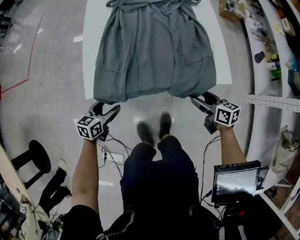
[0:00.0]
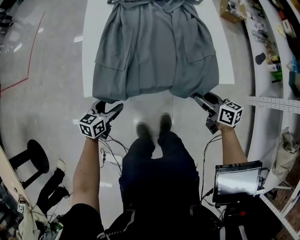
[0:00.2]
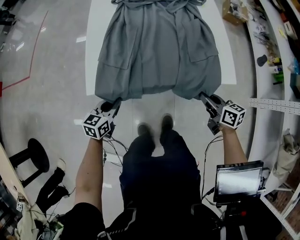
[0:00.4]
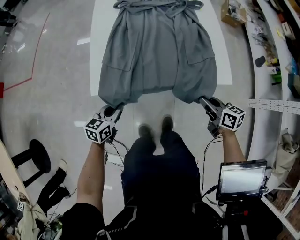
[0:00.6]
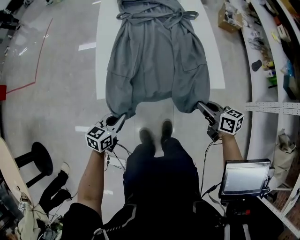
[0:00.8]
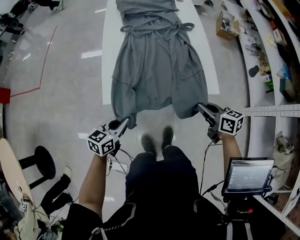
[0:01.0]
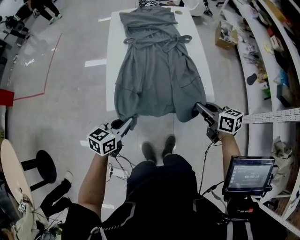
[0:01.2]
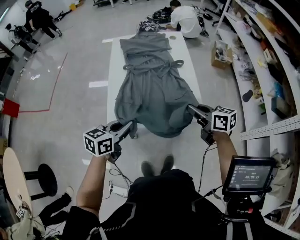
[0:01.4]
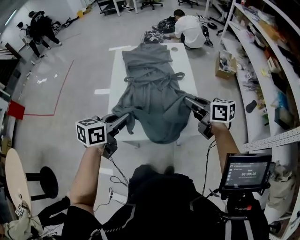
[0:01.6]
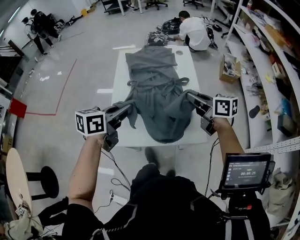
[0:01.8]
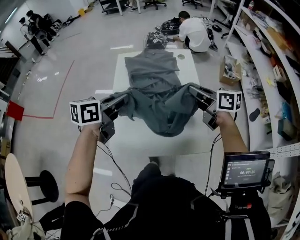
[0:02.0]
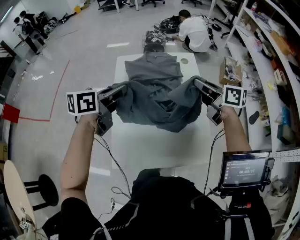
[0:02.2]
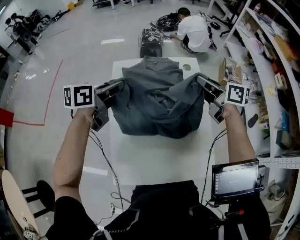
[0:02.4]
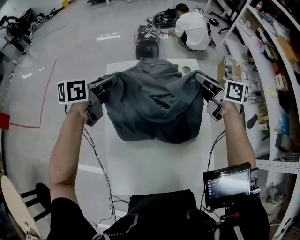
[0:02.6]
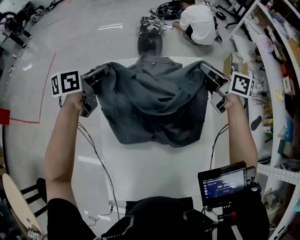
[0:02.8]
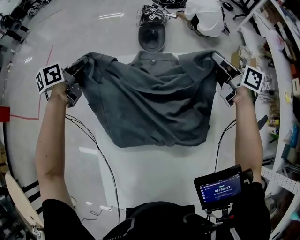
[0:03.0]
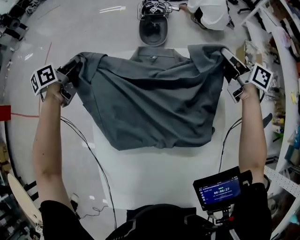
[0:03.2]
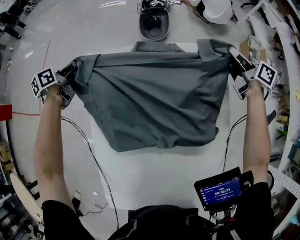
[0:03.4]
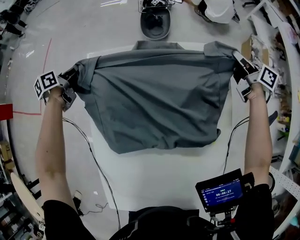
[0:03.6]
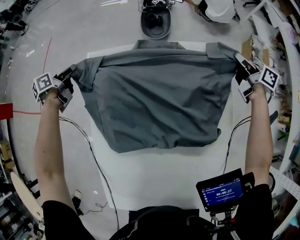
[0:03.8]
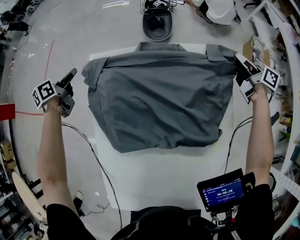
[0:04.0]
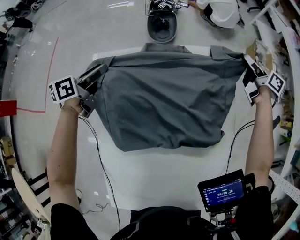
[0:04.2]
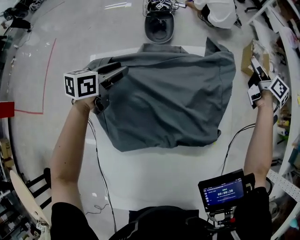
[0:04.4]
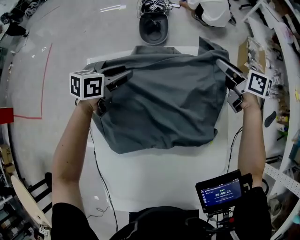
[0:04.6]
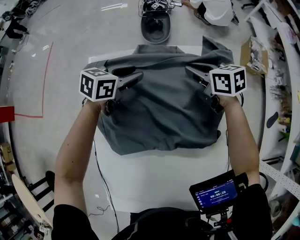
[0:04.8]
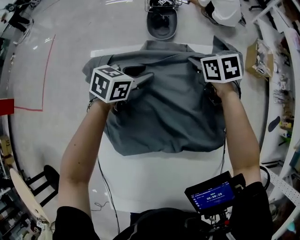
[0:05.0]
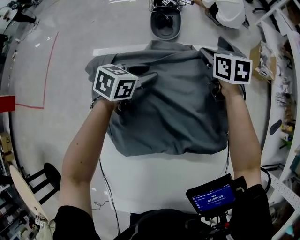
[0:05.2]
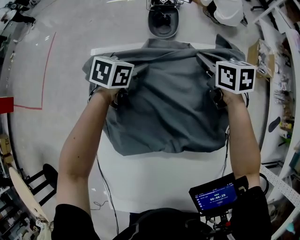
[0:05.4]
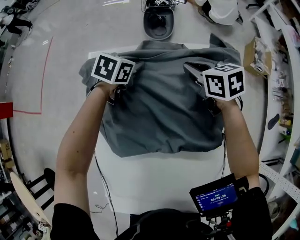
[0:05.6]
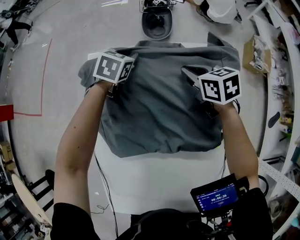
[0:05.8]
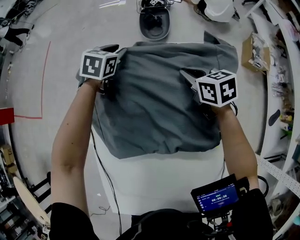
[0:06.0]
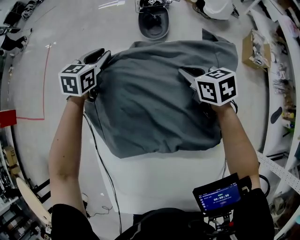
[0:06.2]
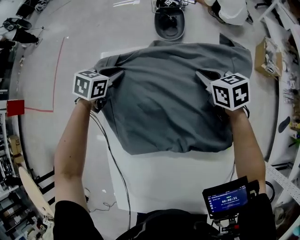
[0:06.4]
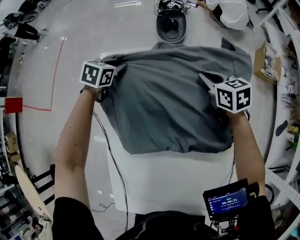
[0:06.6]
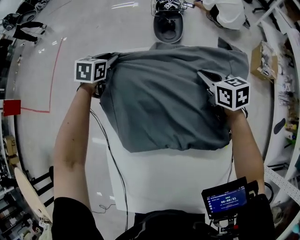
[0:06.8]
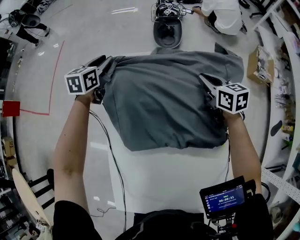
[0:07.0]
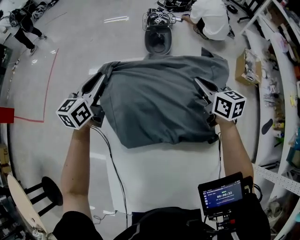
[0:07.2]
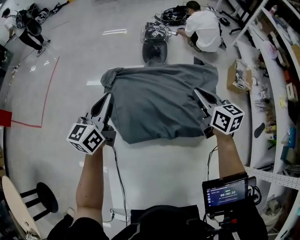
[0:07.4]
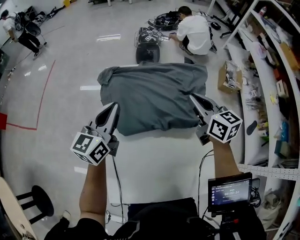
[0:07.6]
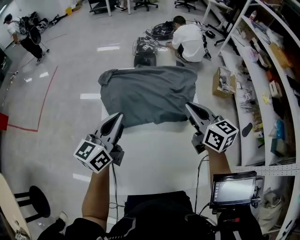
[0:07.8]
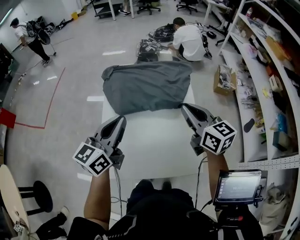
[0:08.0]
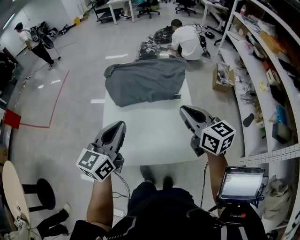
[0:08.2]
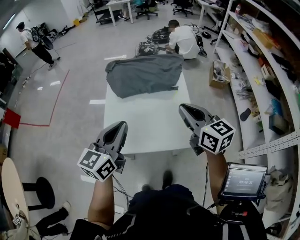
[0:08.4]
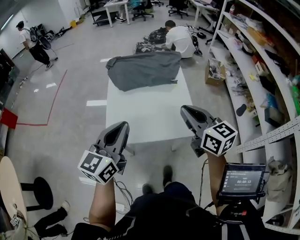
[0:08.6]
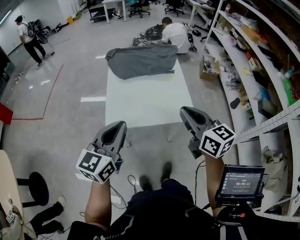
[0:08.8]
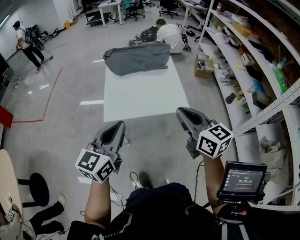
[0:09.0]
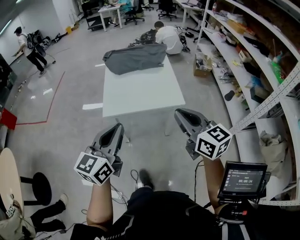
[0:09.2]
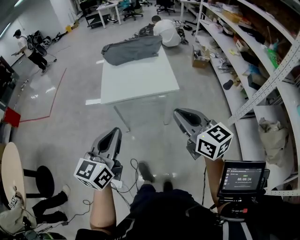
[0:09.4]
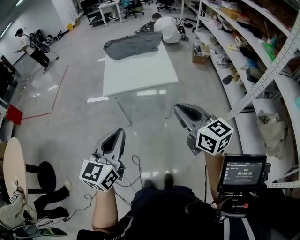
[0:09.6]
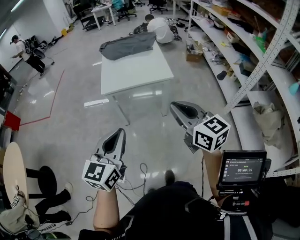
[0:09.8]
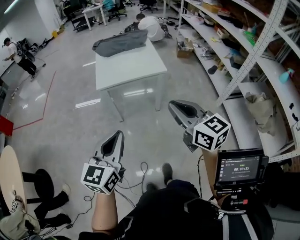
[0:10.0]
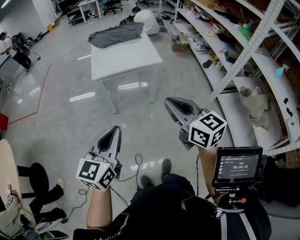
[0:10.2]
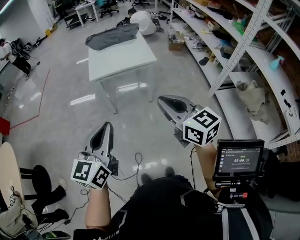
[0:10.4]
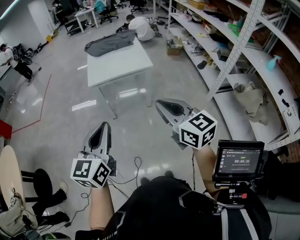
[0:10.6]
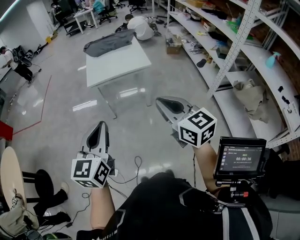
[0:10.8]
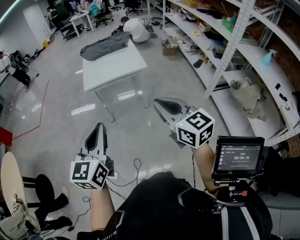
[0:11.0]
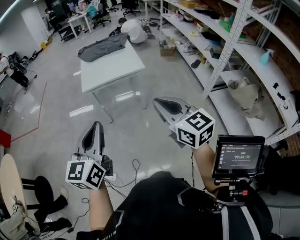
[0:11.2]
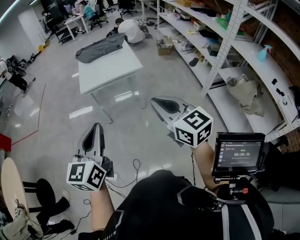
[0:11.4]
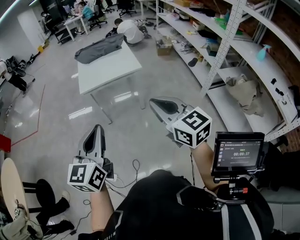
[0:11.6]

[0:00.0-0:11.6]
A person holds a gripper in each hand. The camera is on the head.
0:00.0 to 0:01.4: Both grippers travel together upward, roughly 30 cm. The left gripper closes; the right gripper closes up.
0:01.4 to 0:02.8: Both grippers are carried forward, about 60 cm.
0:02.8 to 0:04.4: The right gripper shifts roughly 25 cm to the right, downward and forward, changes its angle by some 30 degrees, and opens, while the left gripper goes approximately 15 cm downward and forward, moves roughly 20 cm to the left and comes back, and opens.
0:04.4 to 0:05.8: The right gripper moves approximately 30 cm, rotates approximately 50 degrees, and closes, while the left gripper changes place by about 10 cm, and turns by roughly 40 degrees.
0:05.8 to 0:07.2: The right gripper is displaced upward by about 5 cm. The left gripper moves up and down over roughly 15 cm, changing direction 2 times, and points its fingers some 40 degrees further upward.
0:07.2 to 0:08.8: Both grippers are carried backward, about 70 cm.
0:08.8 to 0:10.2: The pair of grippers is taken backward, approximately 50 cm.
0:10.2 to 0:11.6: The right gripper shifts about 10 cm backward and to the right. The left gripper travels upward by roughly 5 cm.

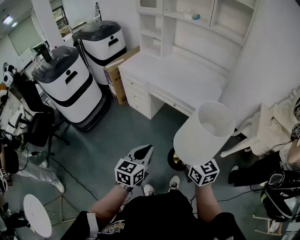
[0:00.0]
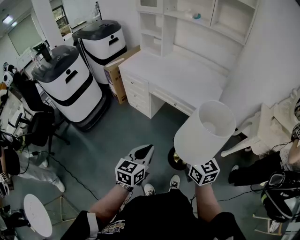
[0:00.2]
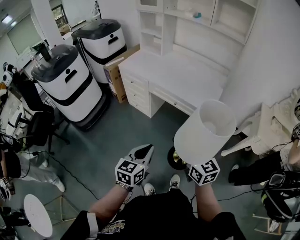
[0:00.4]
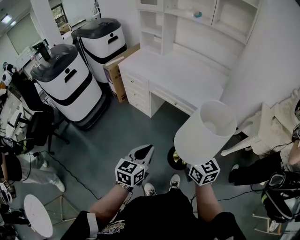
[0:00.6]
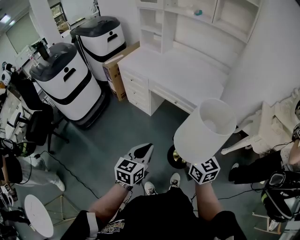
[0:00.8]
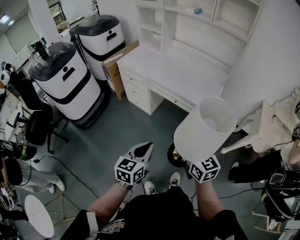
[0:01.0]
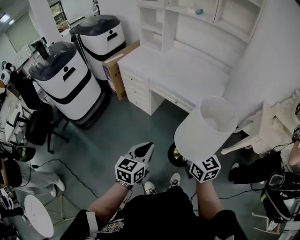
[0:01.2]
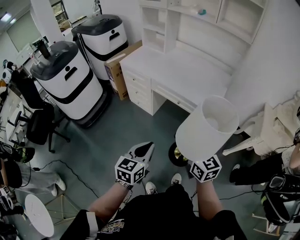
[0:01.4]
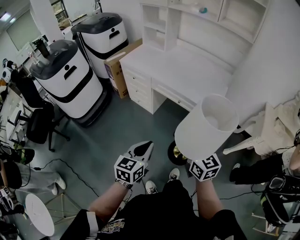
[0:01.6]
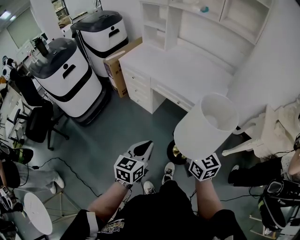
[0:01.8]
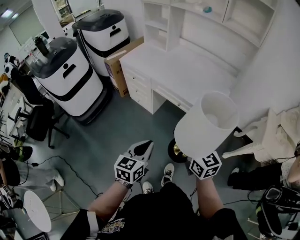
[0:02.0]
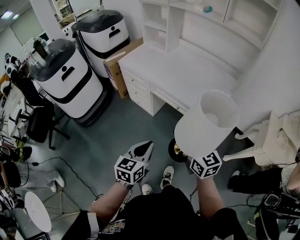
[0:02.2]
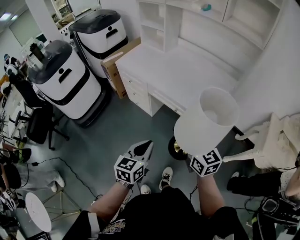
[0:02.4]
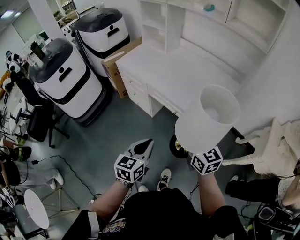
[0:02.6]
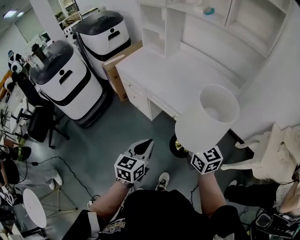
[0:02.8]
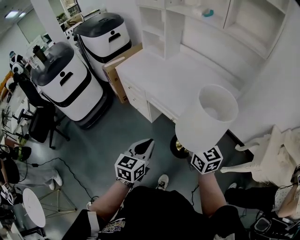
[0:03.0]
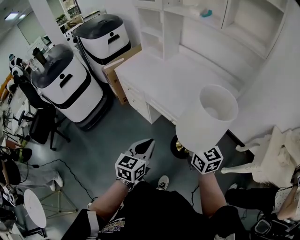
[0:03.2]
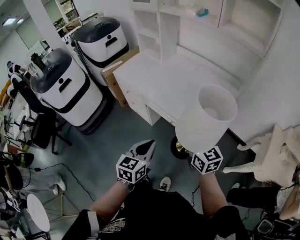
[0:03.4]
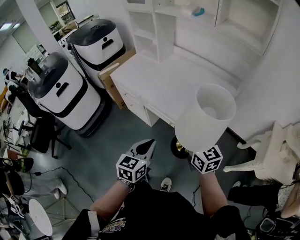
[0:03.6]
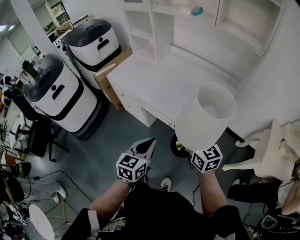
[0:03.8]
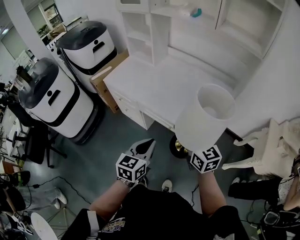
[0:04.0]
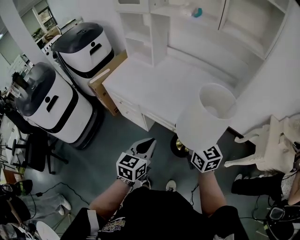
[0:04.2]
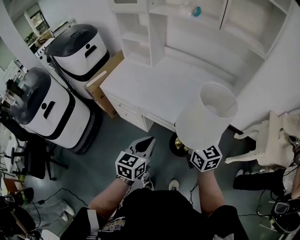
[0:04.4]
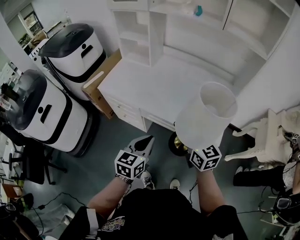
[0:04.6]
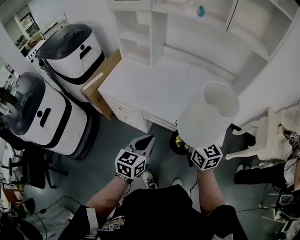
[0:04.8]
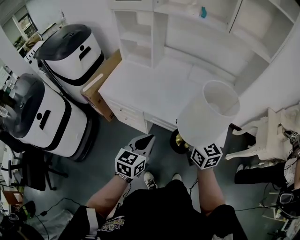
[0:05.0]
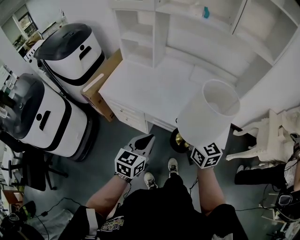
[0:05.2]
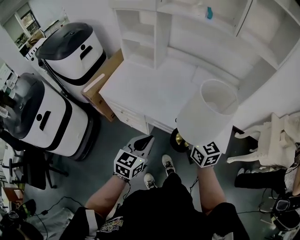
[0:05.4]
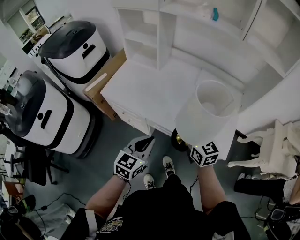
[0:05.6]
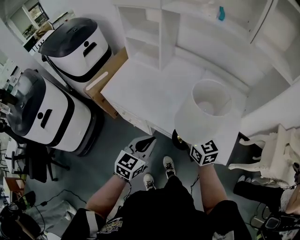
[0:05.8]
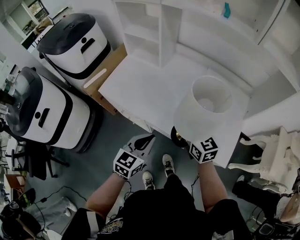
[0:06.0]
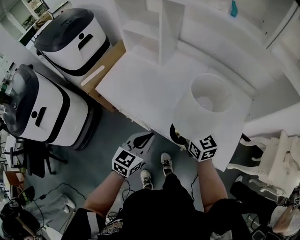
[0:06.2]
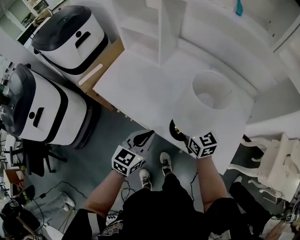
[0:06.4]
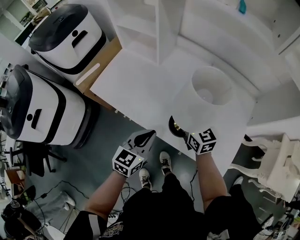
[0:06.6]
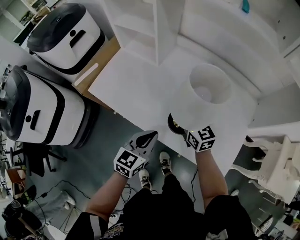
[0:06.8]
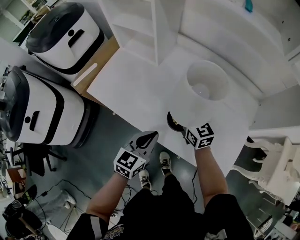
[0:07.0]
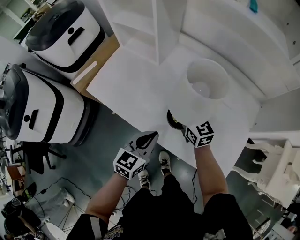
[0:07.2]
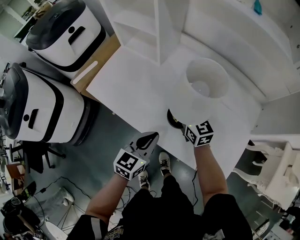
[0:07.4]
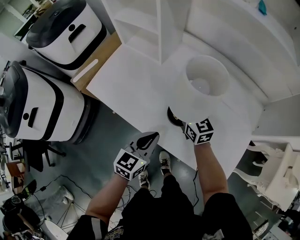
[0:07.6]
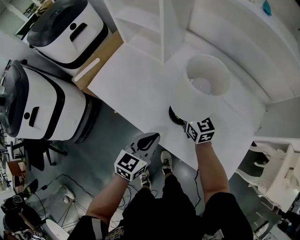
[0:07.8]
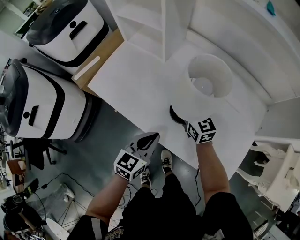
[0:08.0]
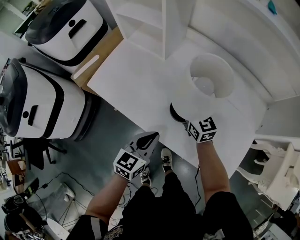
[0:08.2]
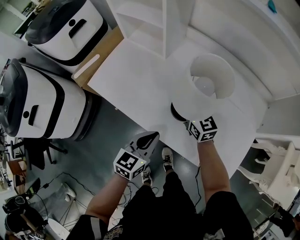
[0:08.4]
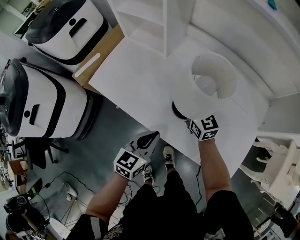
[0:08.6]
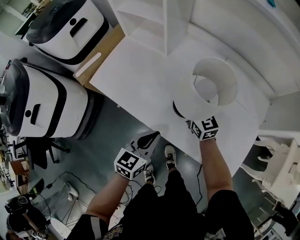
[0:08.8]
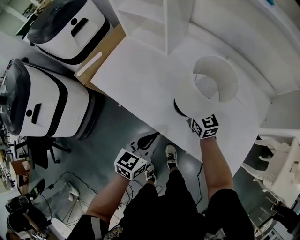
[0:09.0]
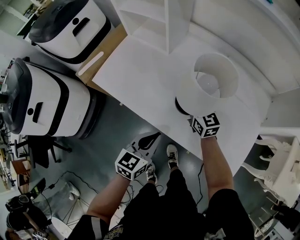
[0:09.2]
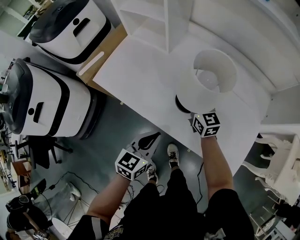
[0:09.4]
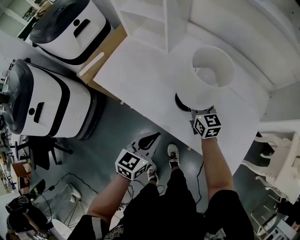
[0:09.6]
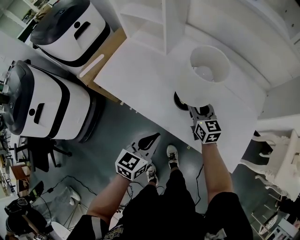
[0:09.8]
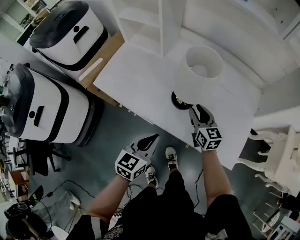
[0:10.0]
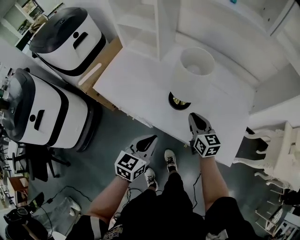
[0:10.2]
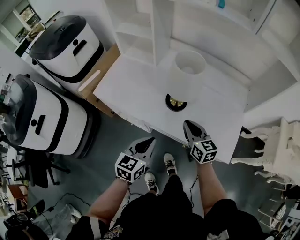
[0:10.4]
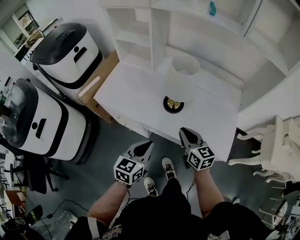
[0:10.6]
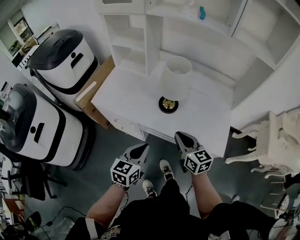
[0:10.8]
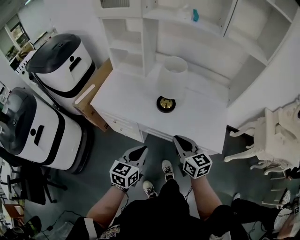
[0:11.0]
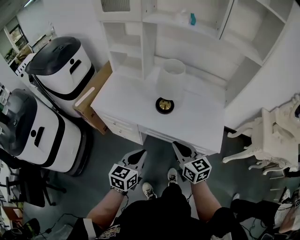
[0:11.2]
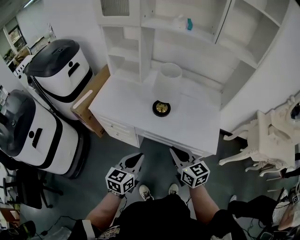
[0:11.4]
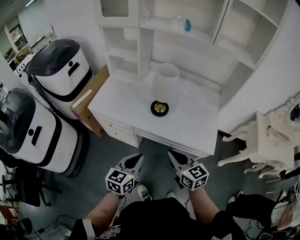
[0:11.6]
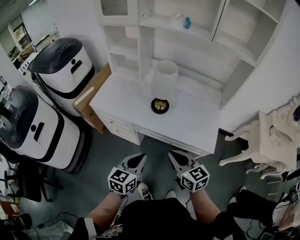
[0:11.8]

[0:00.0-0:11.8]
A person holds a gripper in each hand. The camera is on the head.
0:00.0 to 0:01.4: The grippers move only a little.
0:01.4 to 0:03.0: The grippers both shift forward and to the right by some 20 cm.
0:03.0 to 0:04.4: The two grippers go approximately 15 cm forward and to the left.
0:04.4 to 0:06.0: The grippers both shift forward by approximately 15 cm.
0:06.0 to 0:07.4: The right gripper goes about 20 cm forward and downward; the left gripper travels forward and downward by approximately 15 cm.
0:07.4 to 0:08.8: The grippers stay close to where they were, moving slightly.
0:08.8 to 0:10.4: The left gripper is displaced backward and upward by approximately 10 cm. The right gripper goes approximately 20 cm backward.
0:10.4 to 0:11.8: The left gripper heads backward, covering some 15 cm, while the right gripper travels backward and upward by approximately 25 cm.
